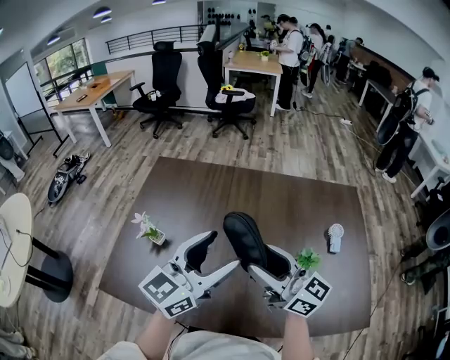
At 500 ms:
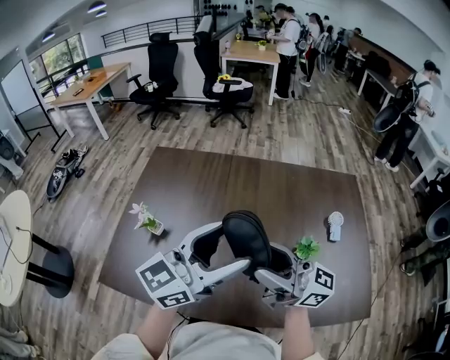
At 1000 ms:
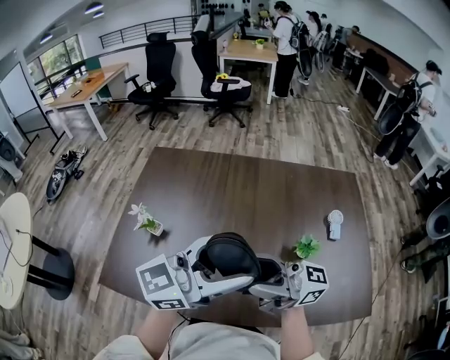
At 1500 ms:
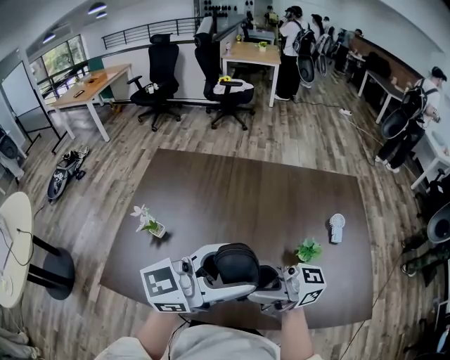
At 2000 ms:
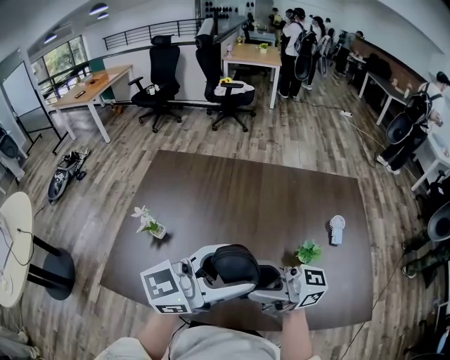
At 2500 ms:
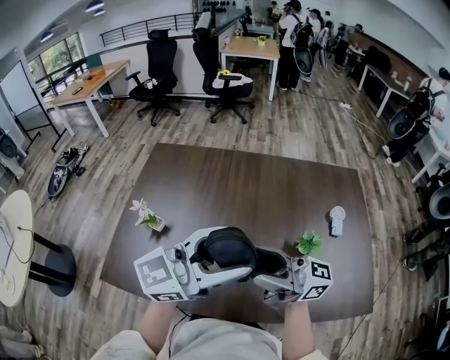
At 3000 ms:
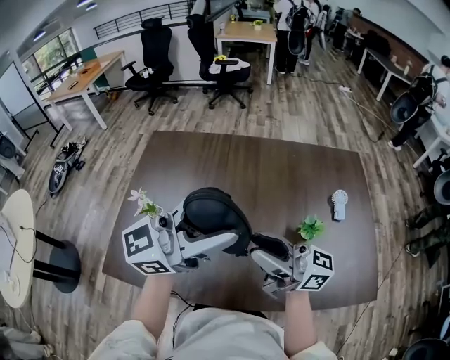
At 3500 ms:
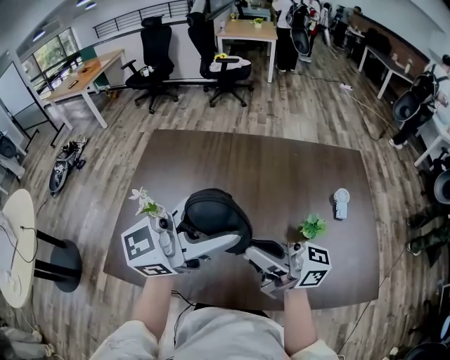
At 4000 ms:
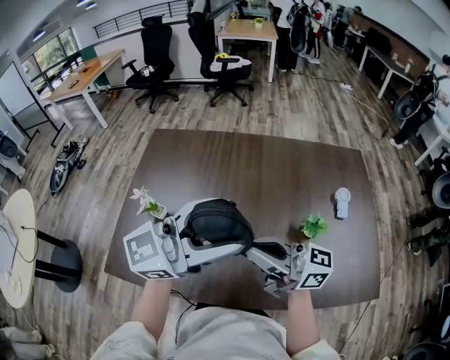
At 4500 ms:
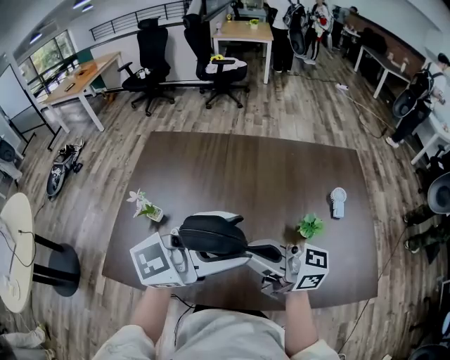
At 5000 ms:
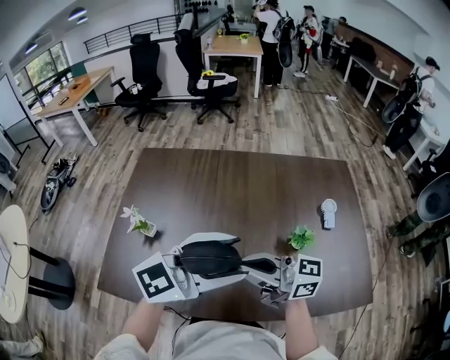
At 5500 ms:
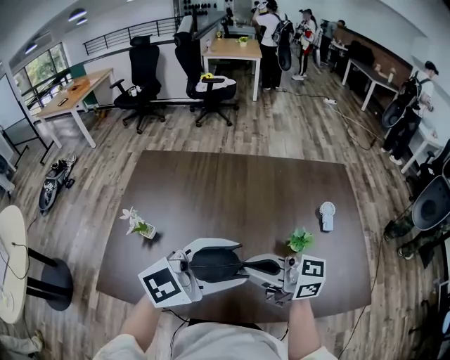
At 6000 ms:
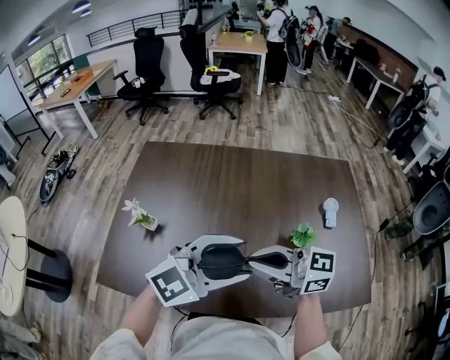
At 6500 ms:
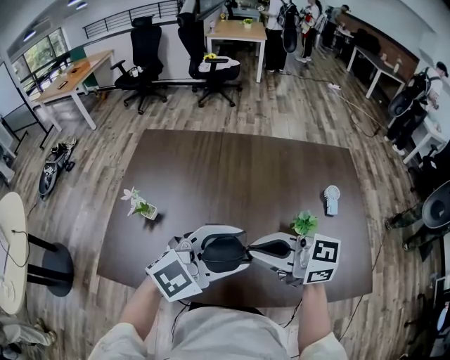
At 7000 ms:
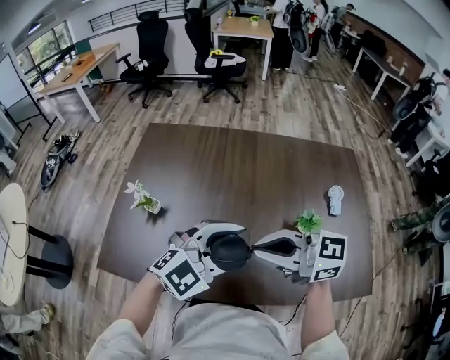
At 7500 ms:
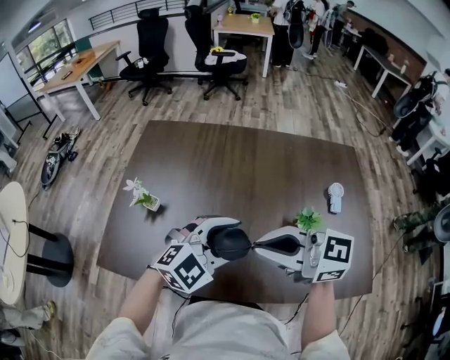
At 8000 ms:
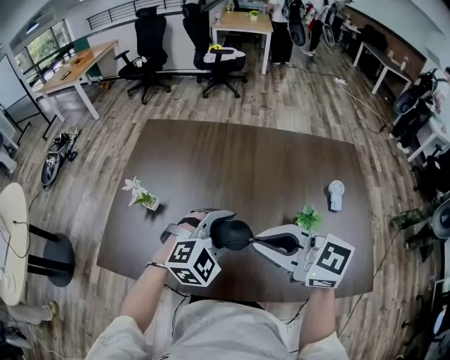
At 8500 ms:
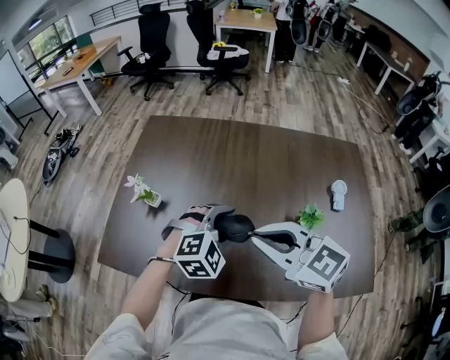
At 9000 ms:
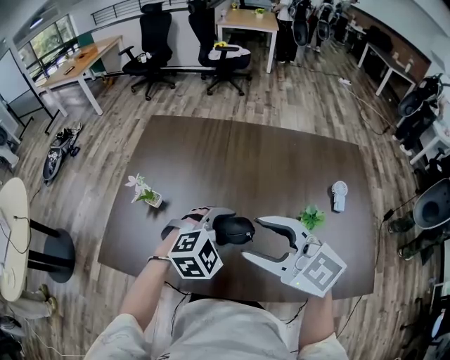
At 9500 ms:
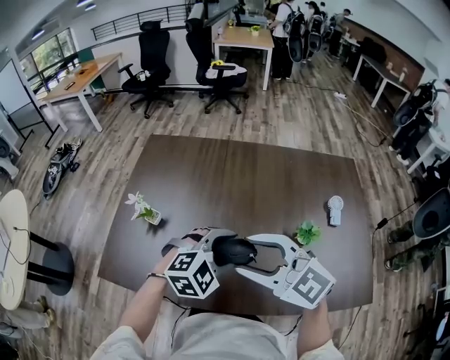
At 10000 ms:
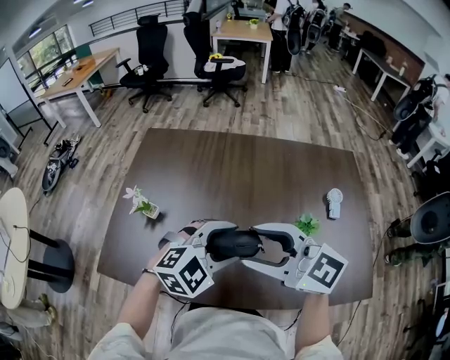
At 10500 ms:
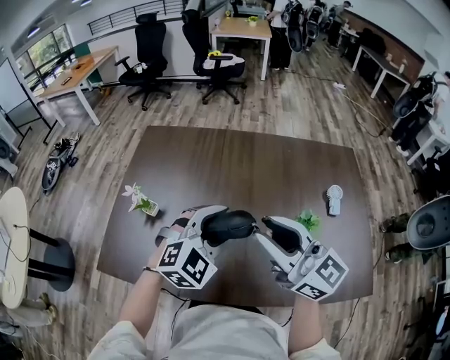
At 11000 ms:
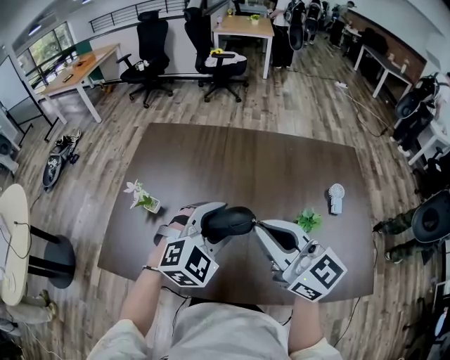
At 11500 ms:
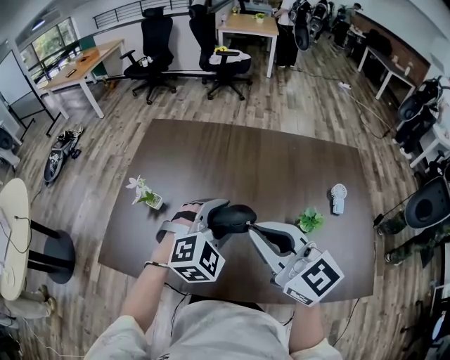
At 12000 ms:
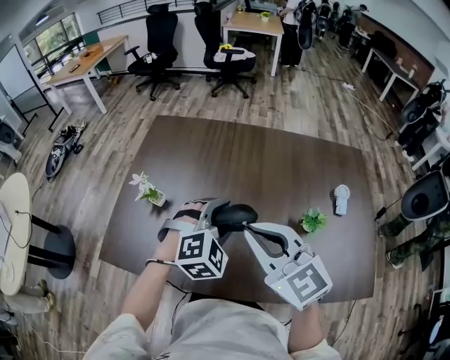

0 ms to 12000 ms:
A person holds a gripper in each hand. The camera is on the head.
0 ms to 2000 ms: The left gripper changes place by roughly 10 cm, and rotates roughly 30 degrees. The right gripper moves approximately 10 cm, and rotates approximately 40 degrees.
2000 ms to 4000 ms: The right gripper closes up.
4000 ms to 6000 ms: The left gripper shifts roughly 10 cm downward, and swivels approximately 30 degrees.
6000 ms to 8000 ms: The left gripper shifts some 10 cm downward, and turns by approximately 40 degrees, while the right gripper turns by some 20 degrees.
8000 ms to 10000 ms: The right gripper opens.
10000 ms to 12000 ms: The right gripper swivels roughly 20 degrees, and closes its fingers. Meanwhile the left gripper travels forward by about 5 cm, and changes its angle by about 20 degrees.

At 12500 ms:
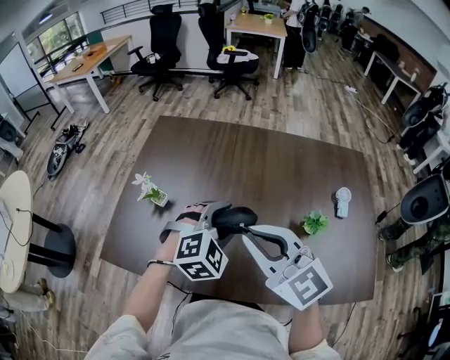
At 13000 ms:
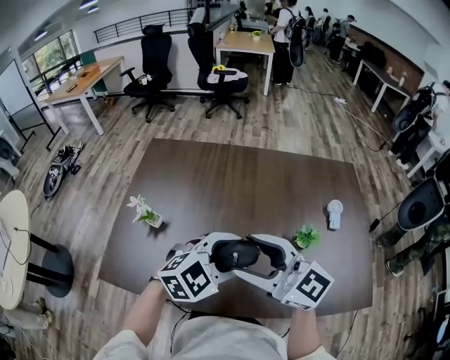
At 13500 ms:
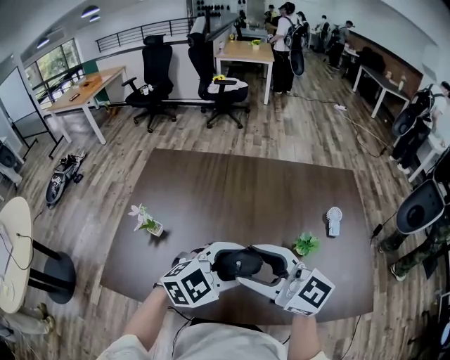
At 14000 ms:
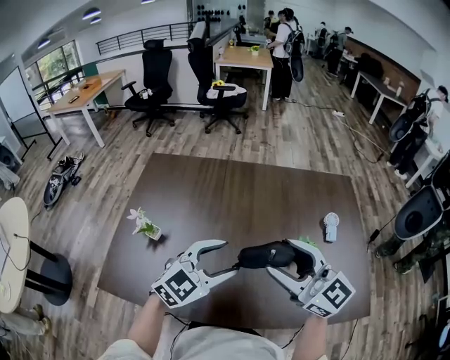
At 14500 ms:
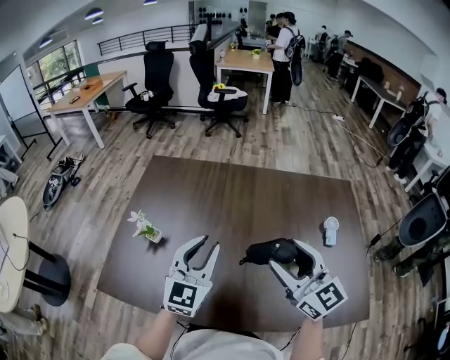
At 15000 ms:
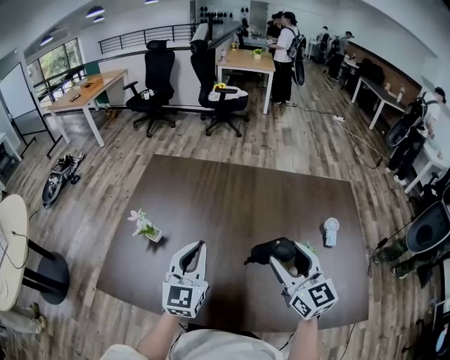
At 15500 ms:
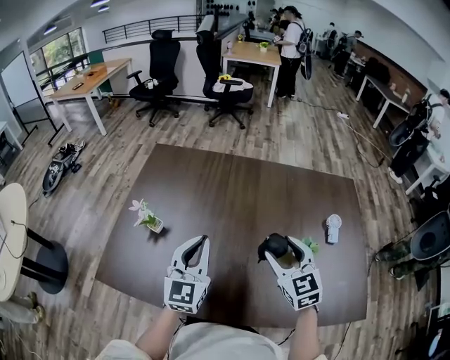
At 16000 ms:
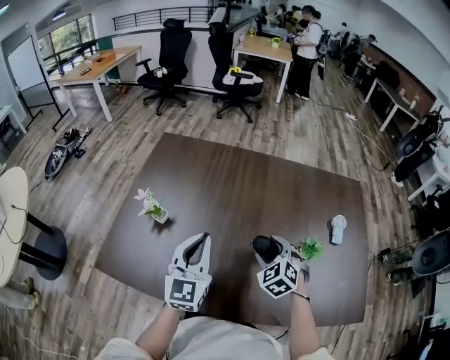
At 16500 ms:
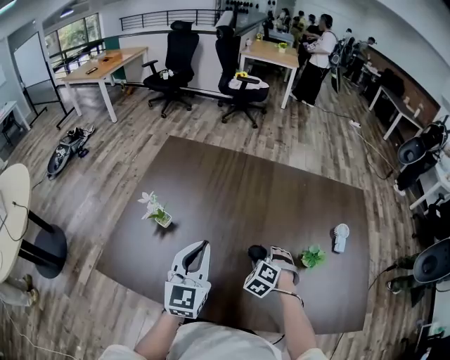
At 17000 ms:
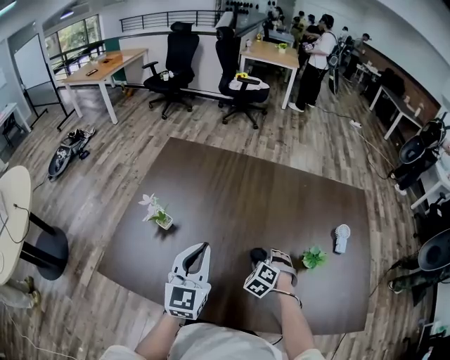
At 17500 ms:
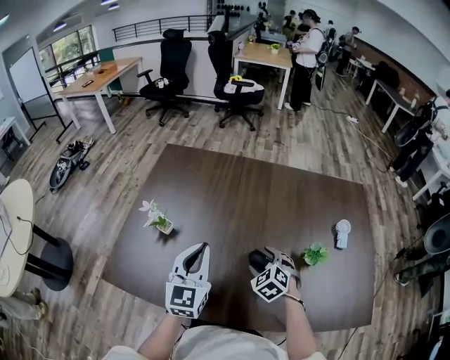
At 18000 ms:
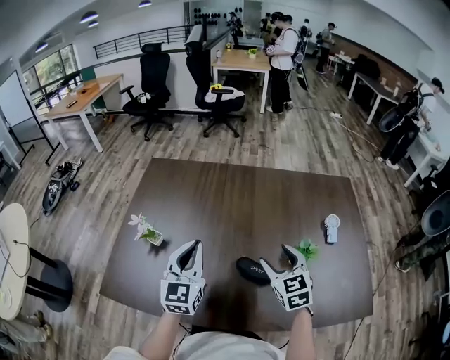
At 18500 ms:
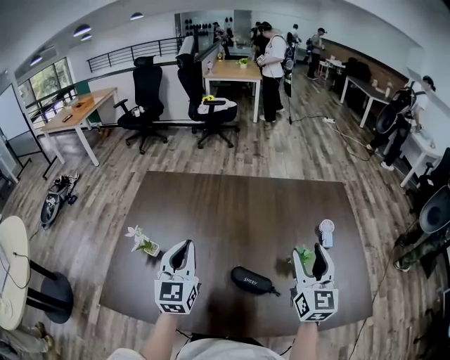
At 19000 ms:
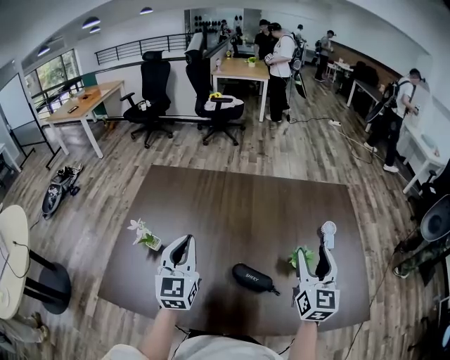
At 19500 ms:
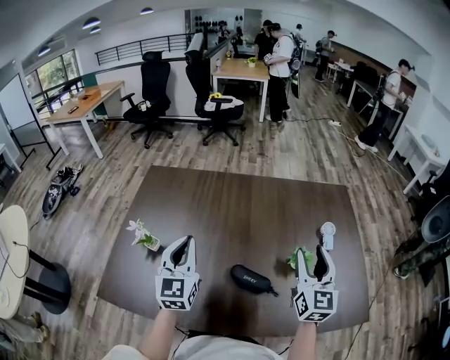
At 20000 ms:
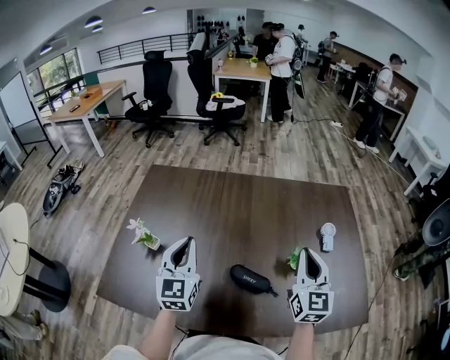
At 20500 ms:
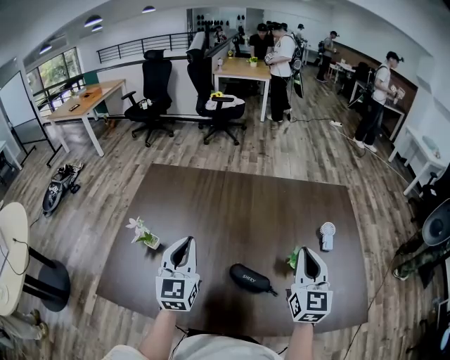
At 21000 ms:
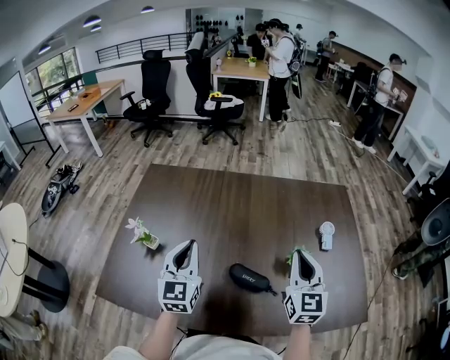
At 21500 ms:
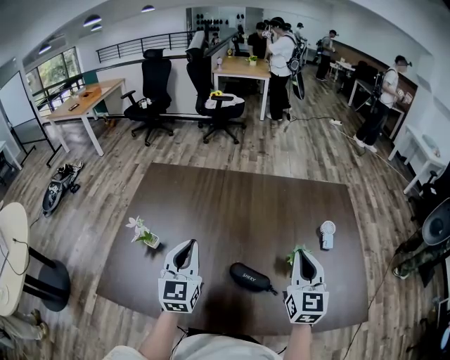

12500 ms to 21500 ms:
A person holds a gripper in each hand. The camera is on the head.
12500 ms to 14500 ms: The right gripper shifts by approximately 15 cm, and opens its fingers, while the left gripper shifts about 5 cm upward, angles its fingers upward, by about 40 degrees, and closes its fingers.
14500 ms to 17000 ms: The right gripper travels downward by about 30 cm, and tips its fingers downward by some 60 degrees. The left gripper heads to the left and downward, covering roughly 10 cm, and closes its fingers.
17000 ms to 19500 ms: The right gripper travels upward and to the right by some 35 cm, and tilts its fingers approximately 60 degrees upward. The left gripper shifts by approximately 5 cm.
19500 ms to 21500 ms: The right gripper closes.

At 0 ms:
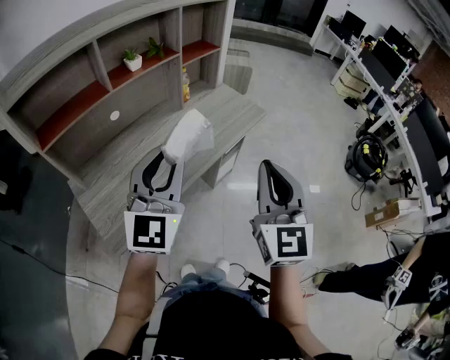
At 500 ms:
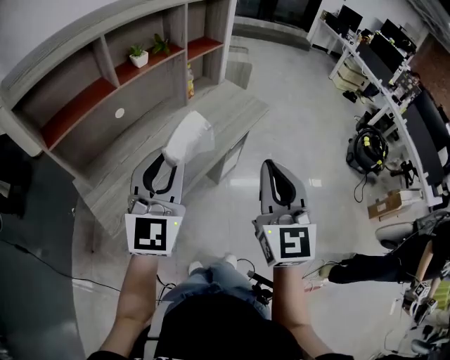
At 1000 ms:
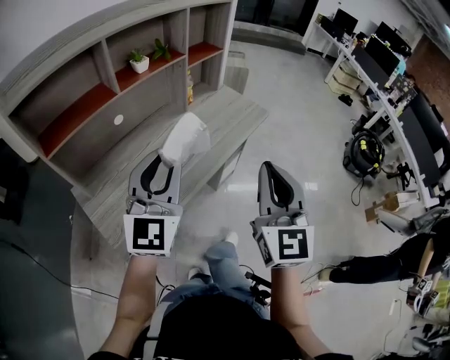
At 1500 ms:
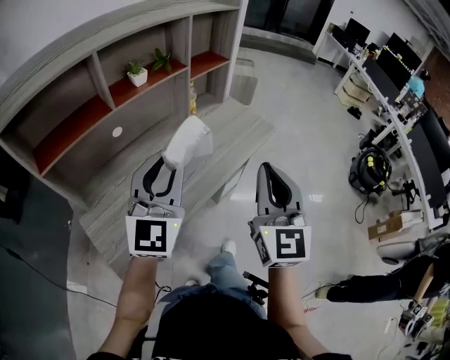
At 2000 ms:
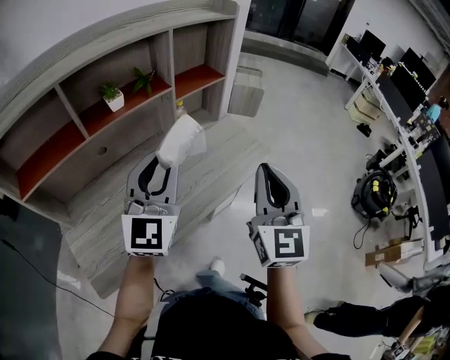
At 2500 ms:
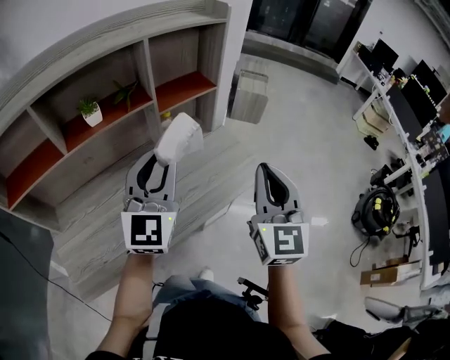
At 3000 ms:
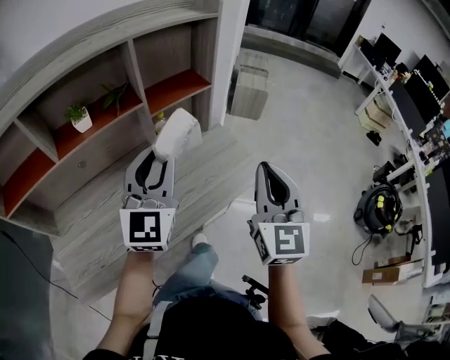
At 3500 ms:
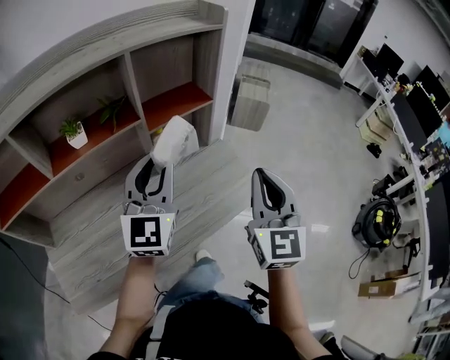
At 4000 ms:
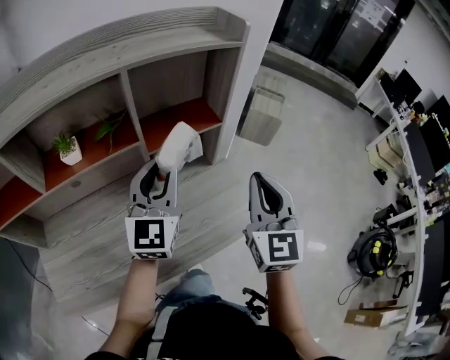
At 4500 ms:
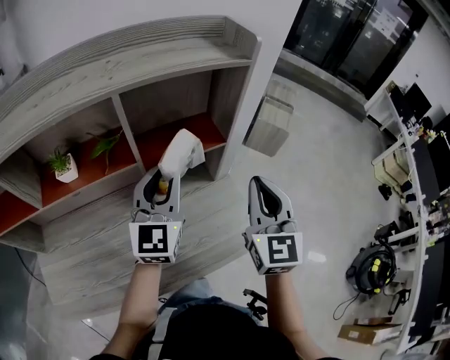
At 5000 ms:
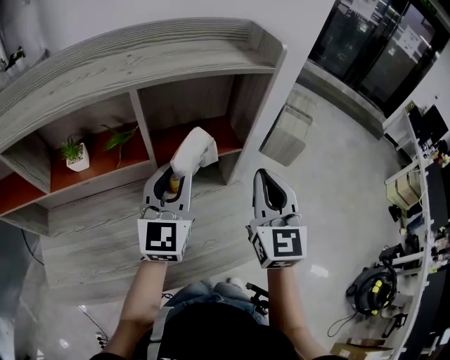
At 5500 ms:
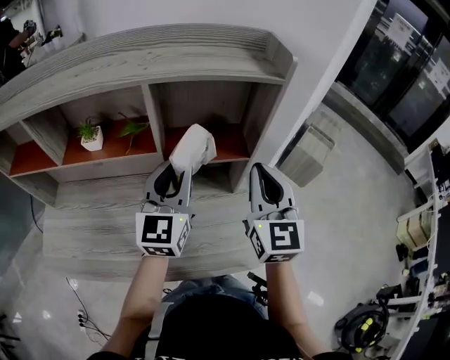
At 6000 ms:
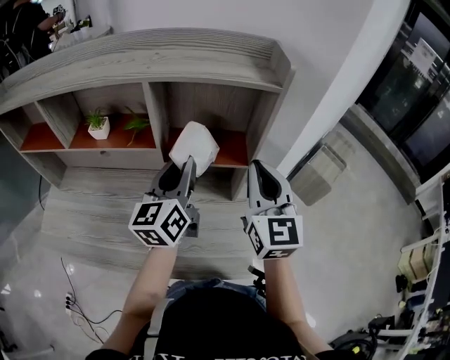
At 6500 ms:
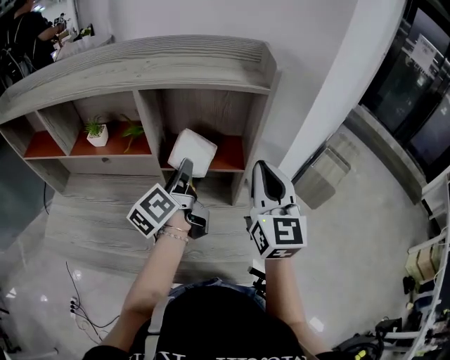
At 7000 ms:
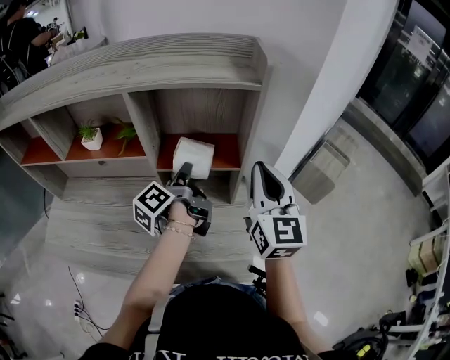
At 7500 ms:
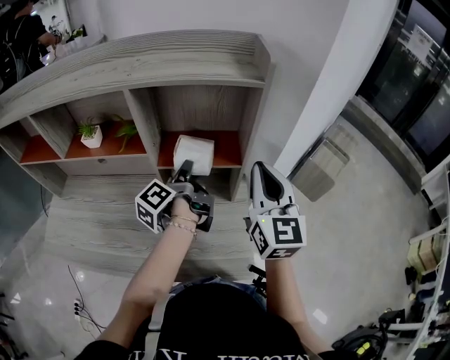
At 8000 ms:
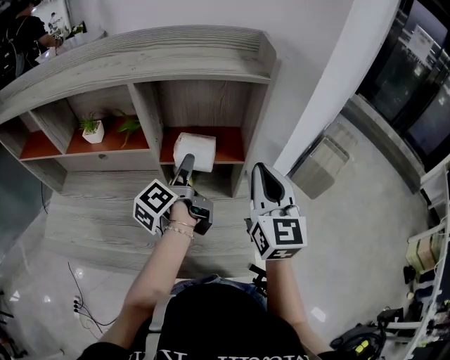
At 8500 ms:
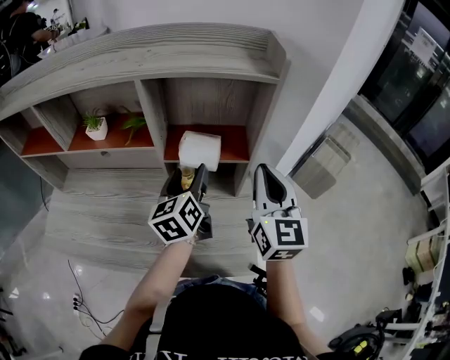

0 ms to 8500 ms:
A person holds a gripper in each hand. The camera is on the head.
0 ms to 2000 ms: Both grippers move forward, some 20 cm.
2000 ms to 4000 ms: The grippers both shift forward by roughly 25 cm.
4000 ms to 6500 ms: The left gripper ends up roughly 10 cm from where it was, and rotates around the line of its fingers by approximately 60 degrees, counterclockwise from behind. Meanwhile the right gripper changes place by some 20 cm, and changes its angle by roughly 30 degrees.
6500 ms to 8500 ms: The left gripper rotates some 30 degrees, and opens.
